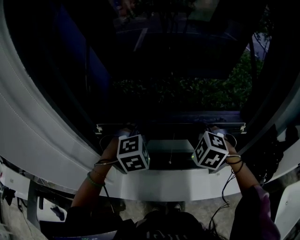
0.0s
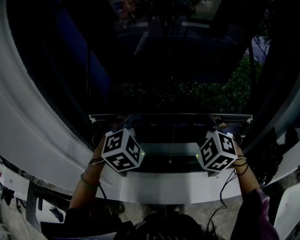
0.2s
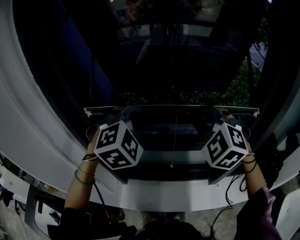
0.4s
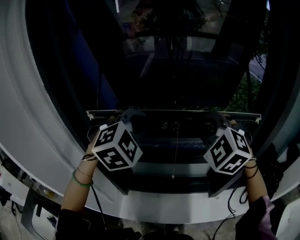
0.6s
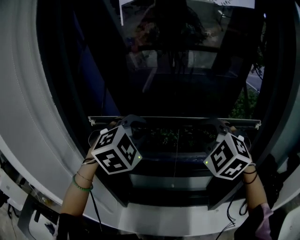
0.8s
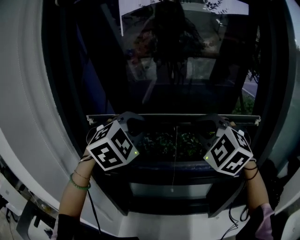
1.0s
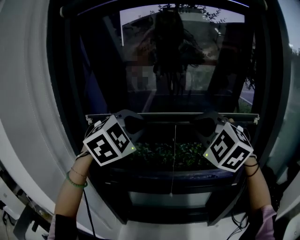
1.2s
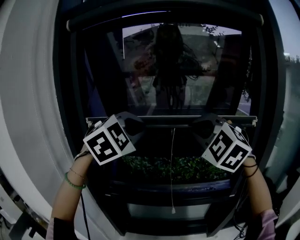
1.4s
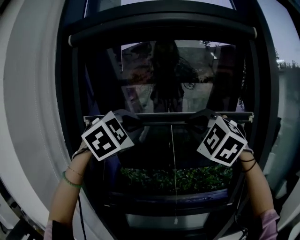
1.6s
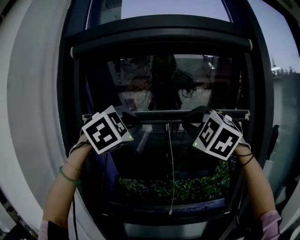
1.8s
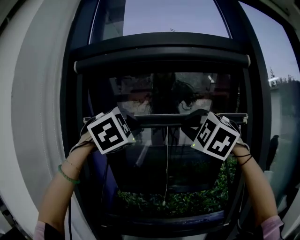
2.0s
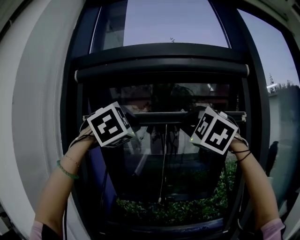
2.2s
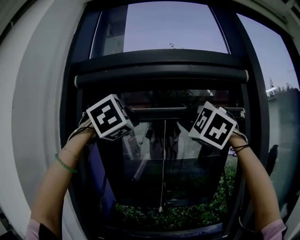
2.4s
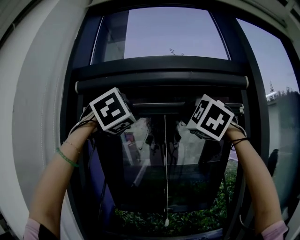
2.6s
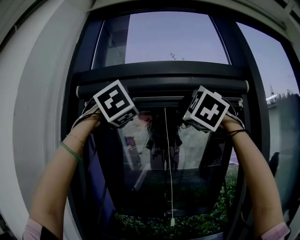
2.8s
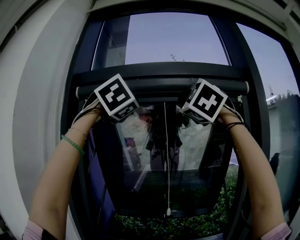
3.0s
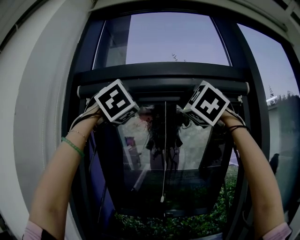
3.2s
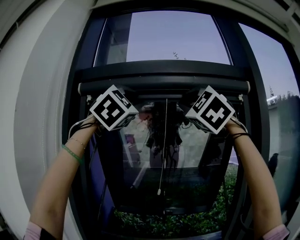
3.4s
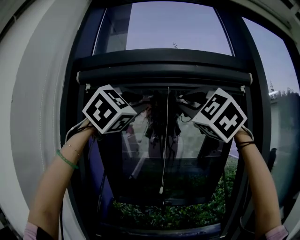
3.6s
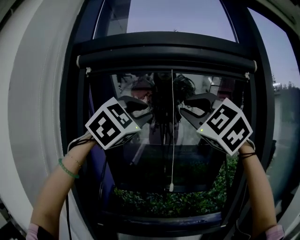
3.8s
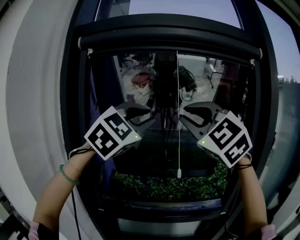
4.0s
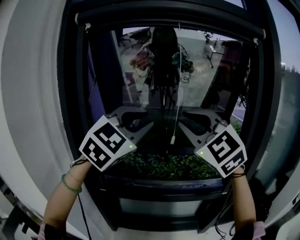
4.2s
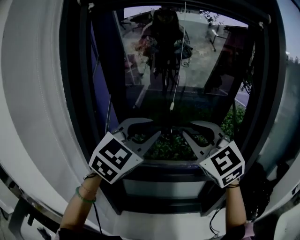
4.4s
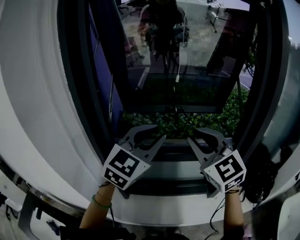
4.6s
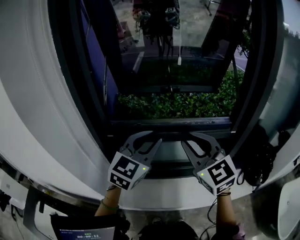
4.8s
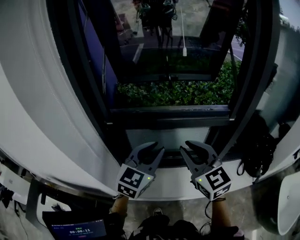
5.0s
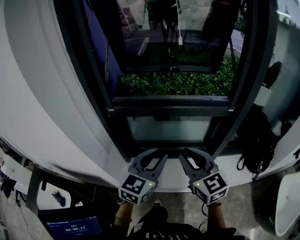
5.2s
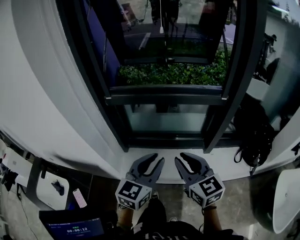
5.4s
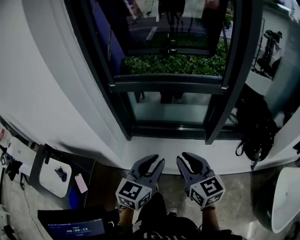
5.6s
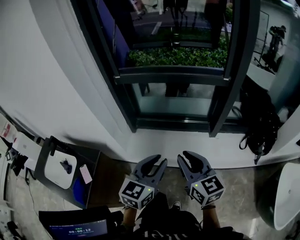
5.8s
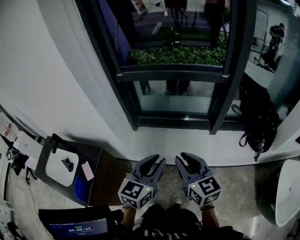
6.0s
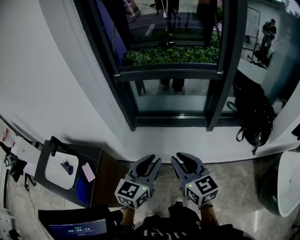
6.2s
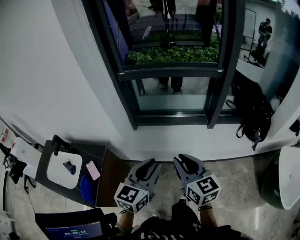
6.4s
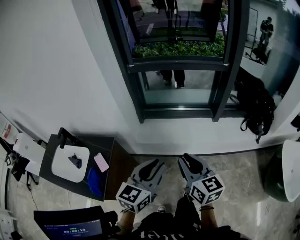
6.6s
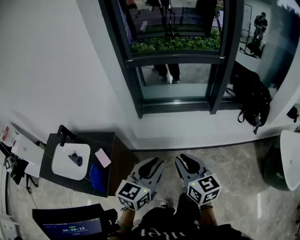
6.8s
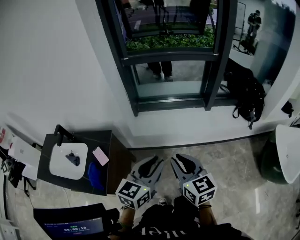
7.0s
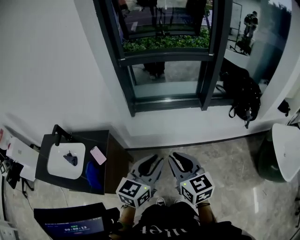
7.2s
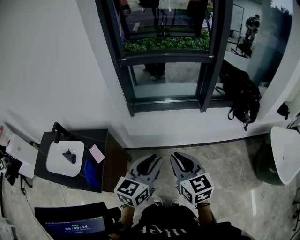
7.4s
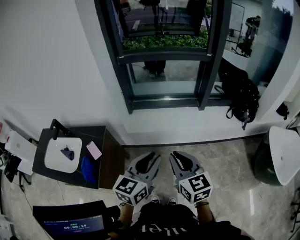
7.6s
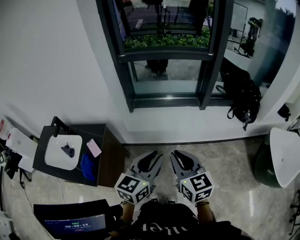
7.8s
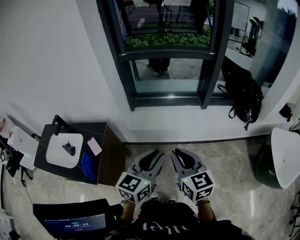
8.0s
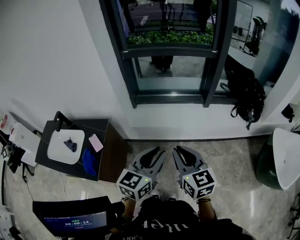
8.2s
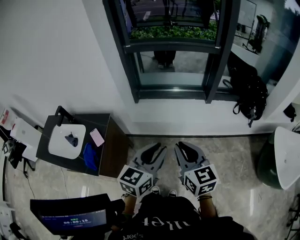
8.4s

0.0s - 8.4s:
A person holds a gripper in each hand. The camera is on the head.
0.0s - 1.4s: The grippers both shift upward by some 35 cm. The right gripper angles its fingers upward, by roughly 30 degrees; the left gripper swivels about 30 degrees.
1.4s - 2.8s: The two grippers go roughly 30 cm upward. The left gripper swivels roughly 20 degrees. Meanwhile the right gripper rotates approximately 20 degrees.
2.8s - 4.2s: Both grippers travel together downward, some 30 cm. The right gripper turns by about 30 degrees, while the left gripper turns by about 30 degrees.
4.2s - 5.6s: Both grippers travel together downward and backward, about 60 cm. The left gripper rolls counterclockwise, seen from behind, by approximately 50 degrees. The right gripper twists some 60 degrees clockwise, seen from behind.
5.6s - 7.0s: The two grippers go roughly 30 cm backward and to the left.
7.0s - 8.4s: The grippers both shift to the right by approximately 5 cm.

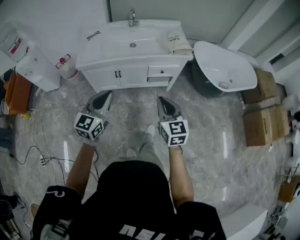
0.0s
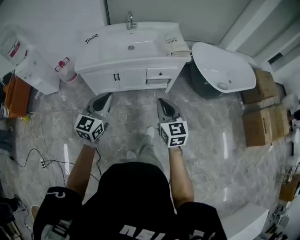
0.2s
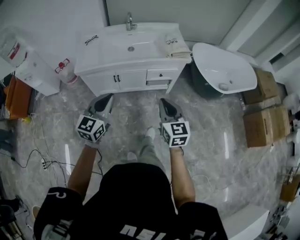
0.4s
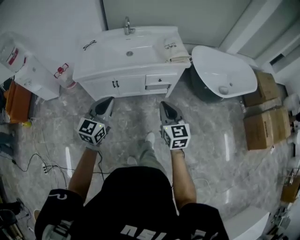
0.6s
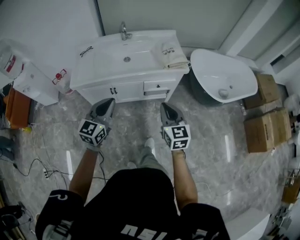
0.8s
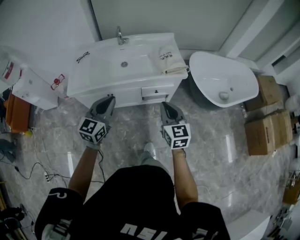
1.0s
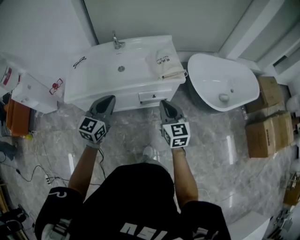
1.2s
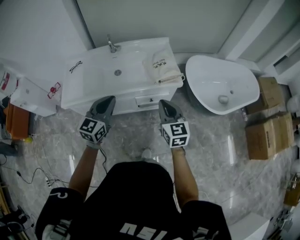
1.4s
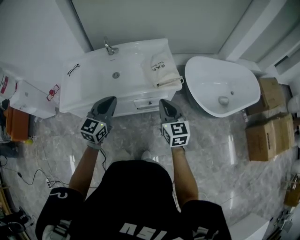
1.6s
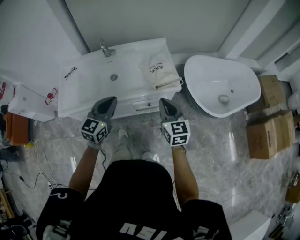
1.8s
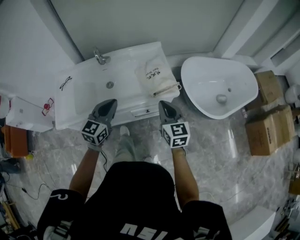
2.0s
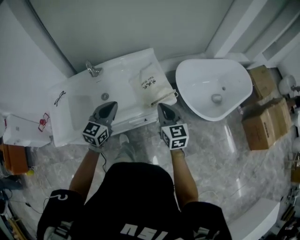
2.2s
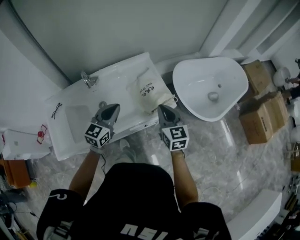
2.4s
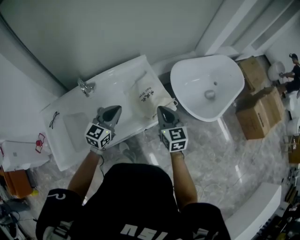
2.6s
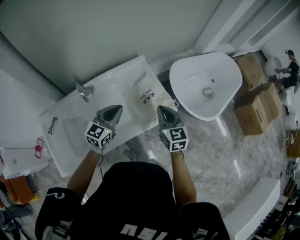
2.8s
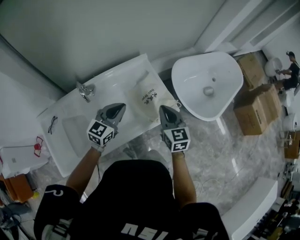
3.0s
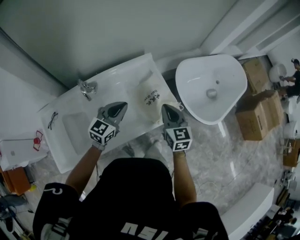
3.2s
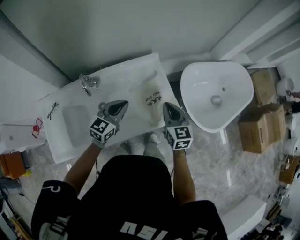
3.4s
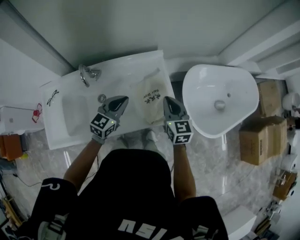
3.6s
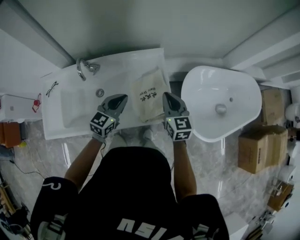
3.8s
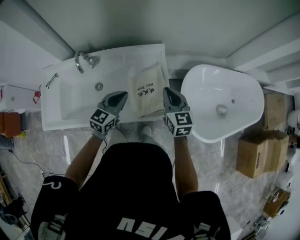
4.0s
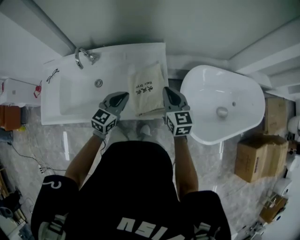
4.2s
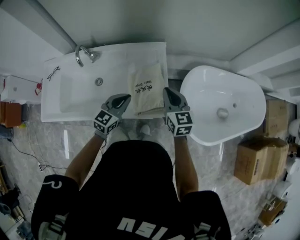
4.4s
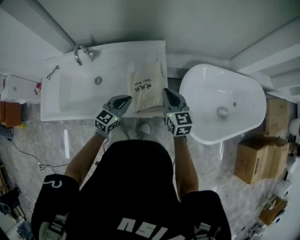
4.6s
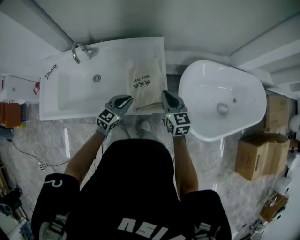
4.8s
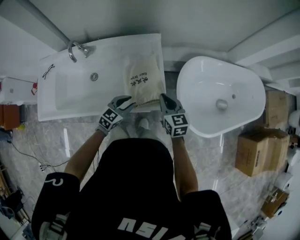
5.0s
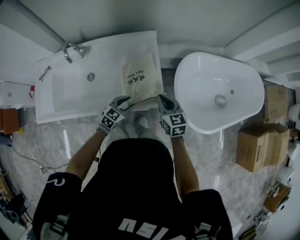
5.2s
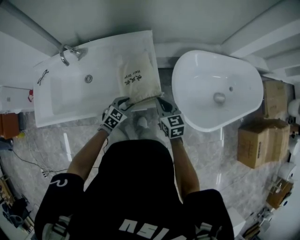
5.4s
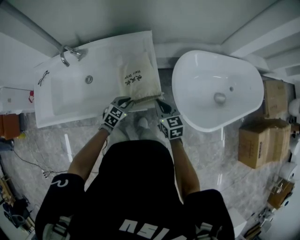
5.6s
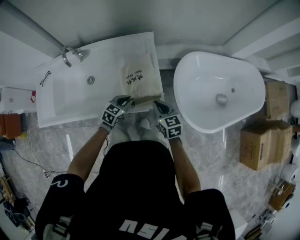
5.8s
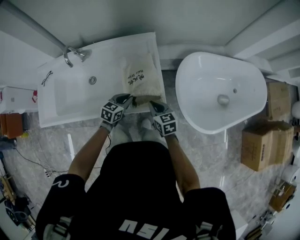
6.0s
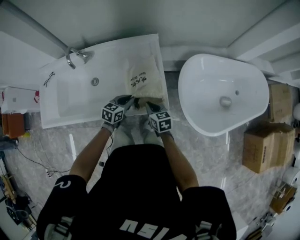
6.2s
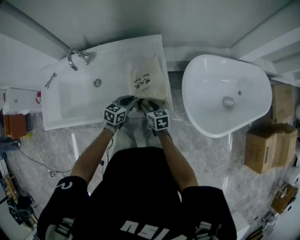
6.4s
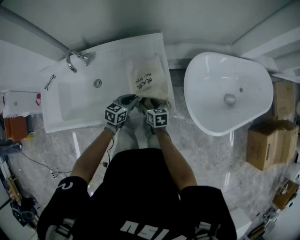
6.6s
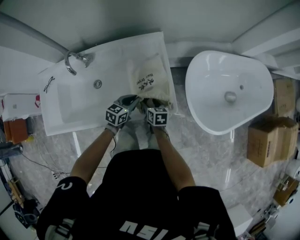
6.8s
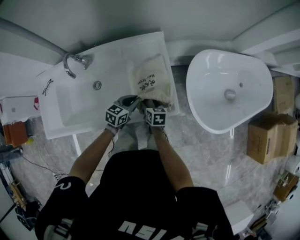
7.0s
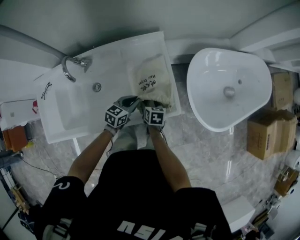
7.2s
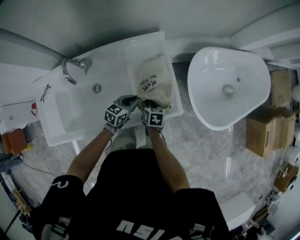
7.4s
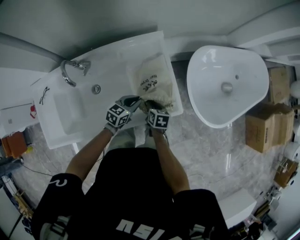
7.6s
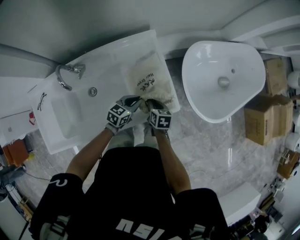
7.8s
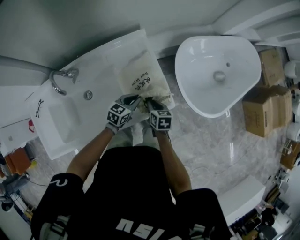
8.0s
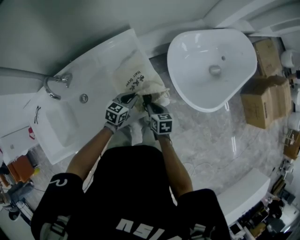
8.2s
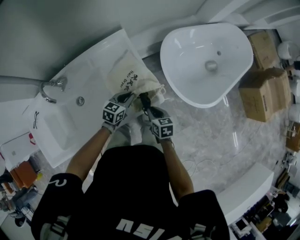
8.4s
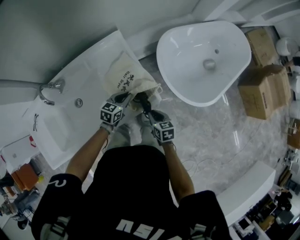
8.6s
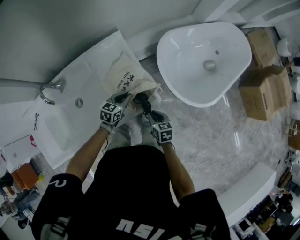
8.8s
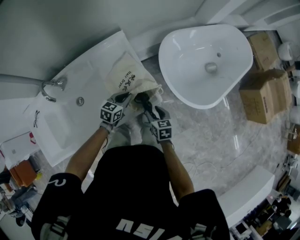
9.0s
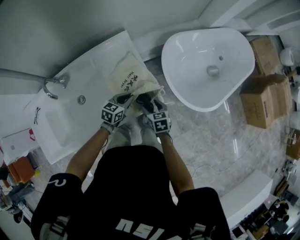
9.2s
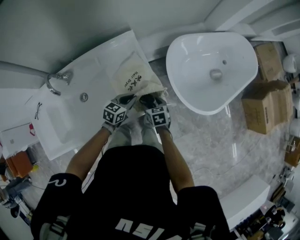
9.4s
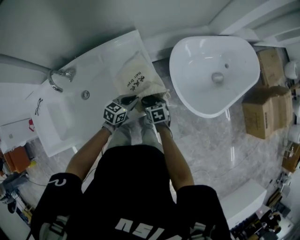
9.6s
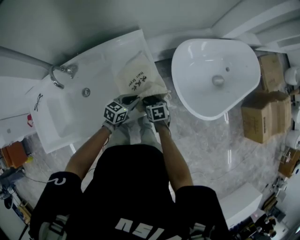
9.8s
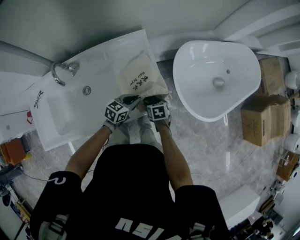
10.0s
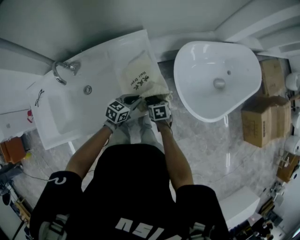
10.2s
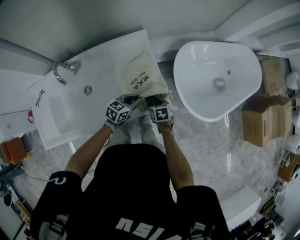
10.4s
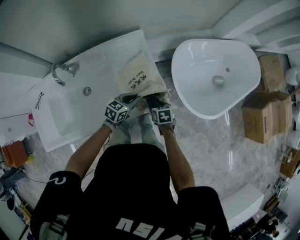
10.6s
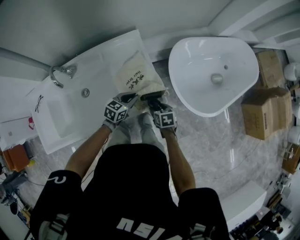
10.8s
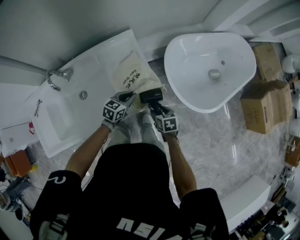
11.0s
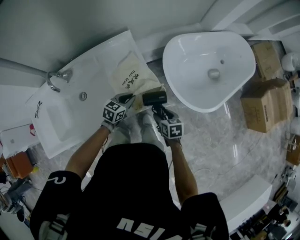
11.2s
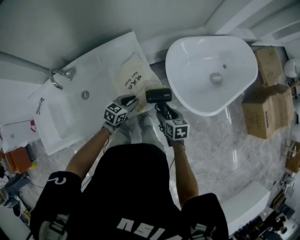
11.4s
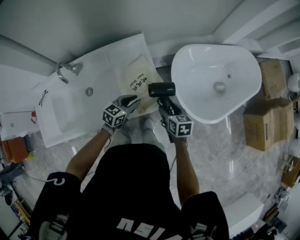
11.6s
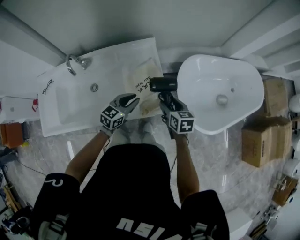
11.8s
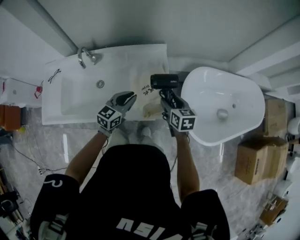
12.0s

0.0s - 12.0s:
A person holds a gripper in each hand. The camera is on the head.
0.0s - 1.6s: The right gripper travels forward by some 30 cm; the left gripper travels forward and to the right by about 35 cm.
1.6s - 3.0s: The grippers both shift forward by roughly 30 cm. The left gripper swivels roughly 30 degrees. The right gripper rotates roughly 20 degrees.
3.0s - 4.4s: The left gripper shifts roughly 15 cm to the right and downward, and turns by roughly 20 degrees. The right gripper heads forward and to the right, covering approximately 15 cm, and swivels approximately 30 degrees.
4.4s - 6.0s: The right gripper is displaced downward and backward by some 20 cm. Meanwhile the left gripper heads downward, covering some 15 cm, turns by approximately 20 degrees, and opens, then closes once more.
6.0s - 7.6s: The right gripper moves downward and to the left, some 15 cm, turns by approximately 40 degrees, and opens, then closes once more. The left gripper heads to the left, covering approximately 5 cm.
7.6s - 9.0s: The right gripper goes about 15 cm to the right, and opens its fingers. Meanwhile the left gripper is displaced to the right by some 10 cm.
9.0s - 10.4s: The right gripper goes approximately 5 cm downward, and turns by about 20 degrees.
10.4s - 12.0s: The right gripper heads upward, covering approximately 20 cm, and changes its angle by approximately 30 degrees, while the left gripper is displaced upward and to the left by about 15 cm, and rotates about 30 degrees.

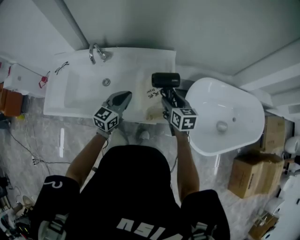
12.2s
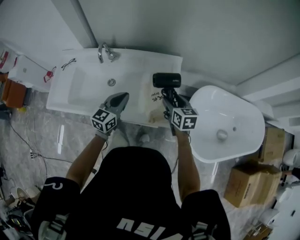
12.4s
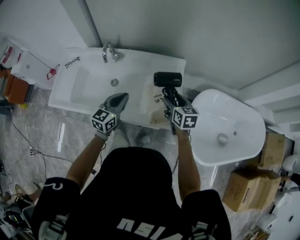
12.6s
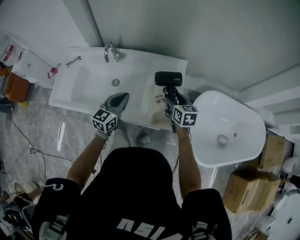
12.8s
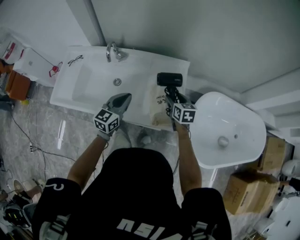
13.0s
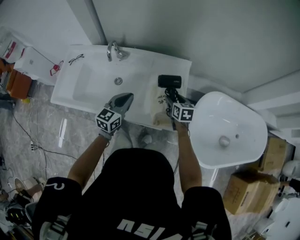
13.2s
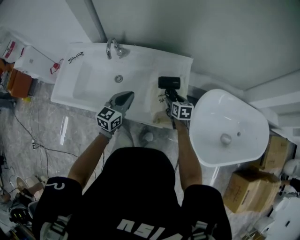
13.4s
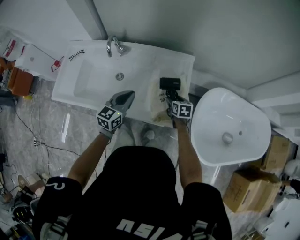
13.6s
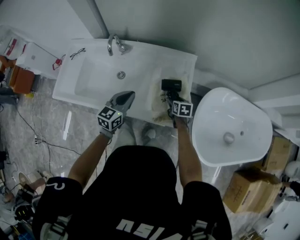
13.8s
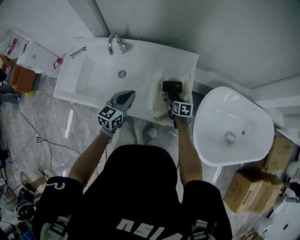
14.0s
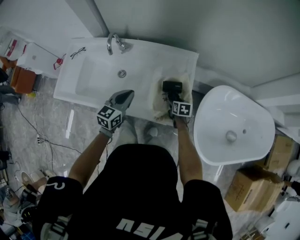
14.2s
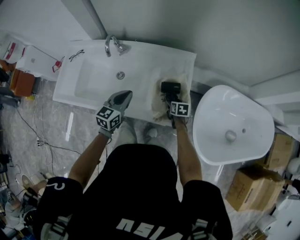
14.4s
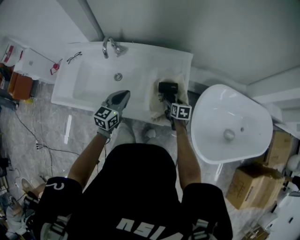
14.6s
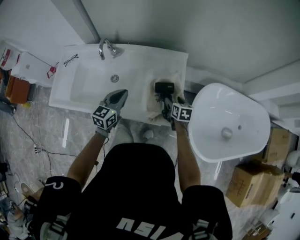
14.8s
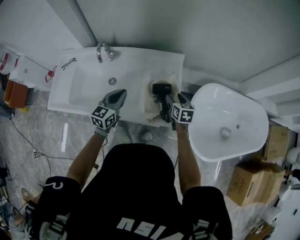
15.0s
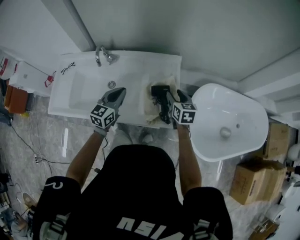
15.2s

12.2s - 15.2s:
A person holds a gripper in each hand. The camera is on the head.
12.2s - 13.8s: The left gripper travels to the left by some 5 cm, while the right gripper shifts approximately 20 cm downward.
13.8s - 15.2s: The right gripper travels upward by about 15 cm, and changes its angle by some 20 degrees.
